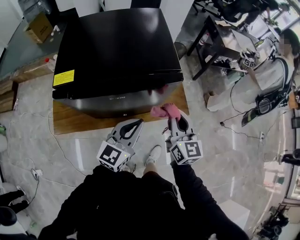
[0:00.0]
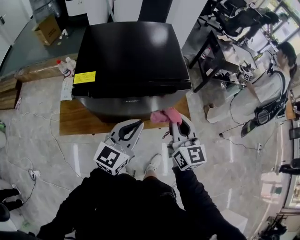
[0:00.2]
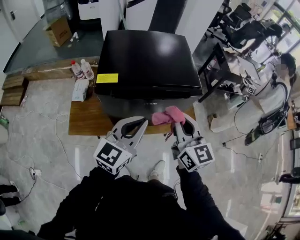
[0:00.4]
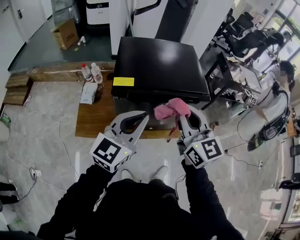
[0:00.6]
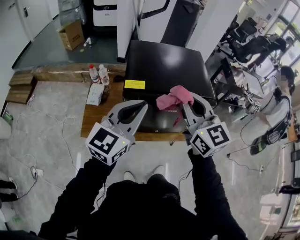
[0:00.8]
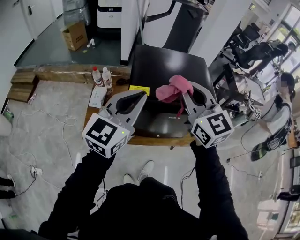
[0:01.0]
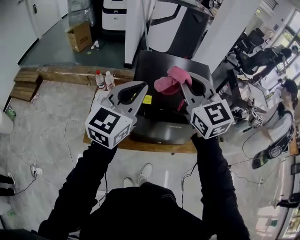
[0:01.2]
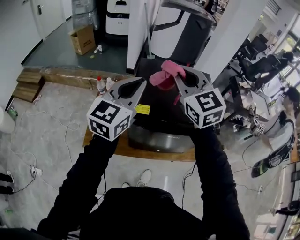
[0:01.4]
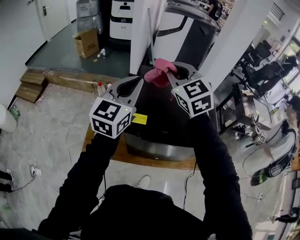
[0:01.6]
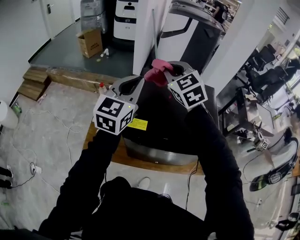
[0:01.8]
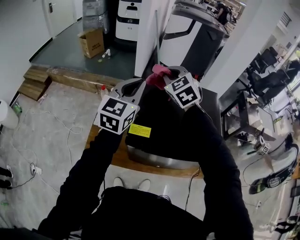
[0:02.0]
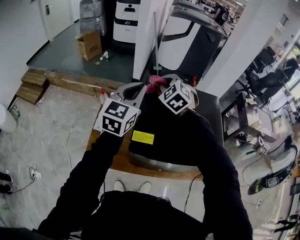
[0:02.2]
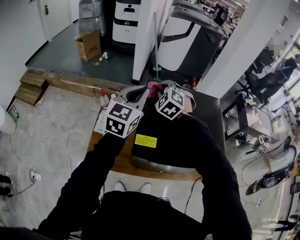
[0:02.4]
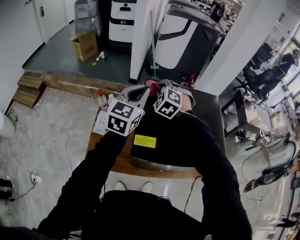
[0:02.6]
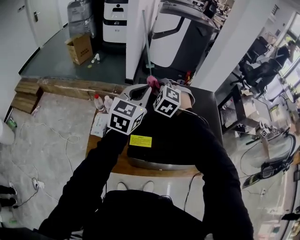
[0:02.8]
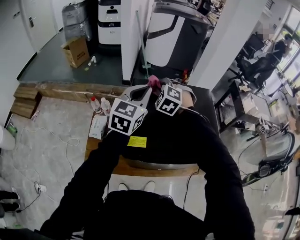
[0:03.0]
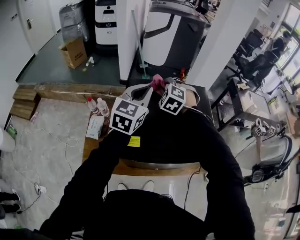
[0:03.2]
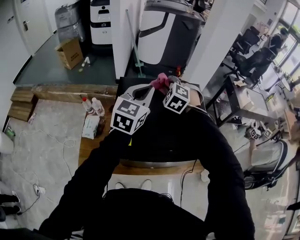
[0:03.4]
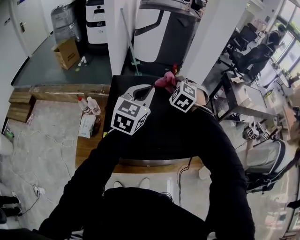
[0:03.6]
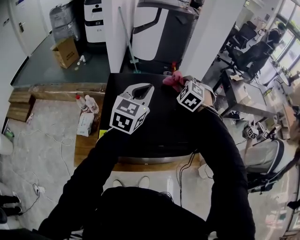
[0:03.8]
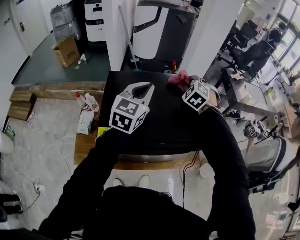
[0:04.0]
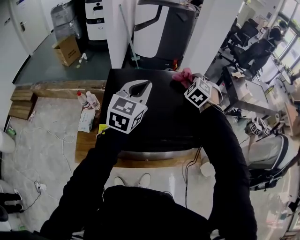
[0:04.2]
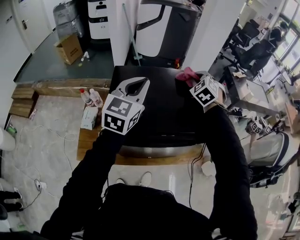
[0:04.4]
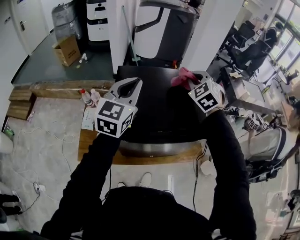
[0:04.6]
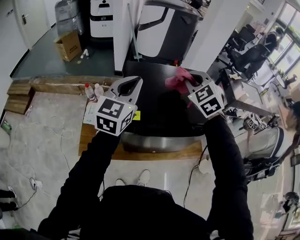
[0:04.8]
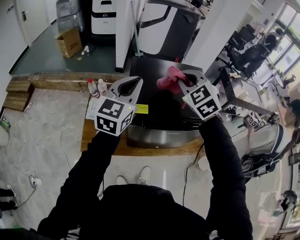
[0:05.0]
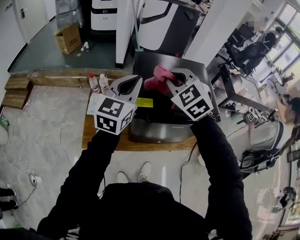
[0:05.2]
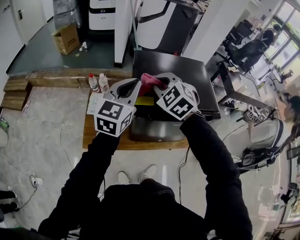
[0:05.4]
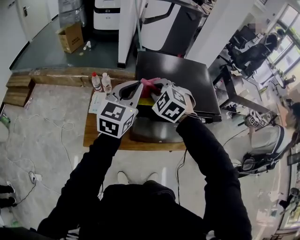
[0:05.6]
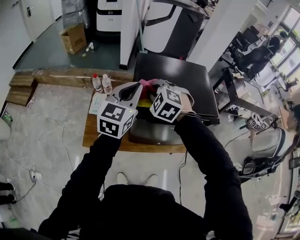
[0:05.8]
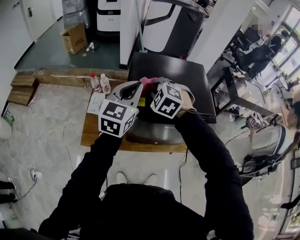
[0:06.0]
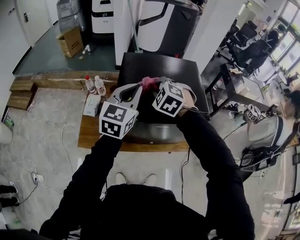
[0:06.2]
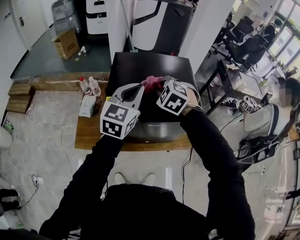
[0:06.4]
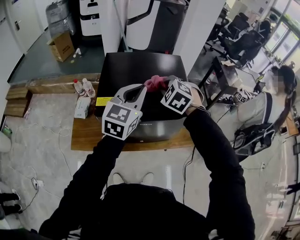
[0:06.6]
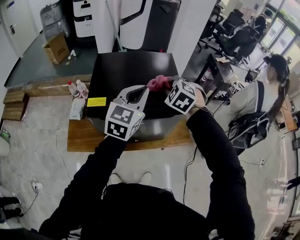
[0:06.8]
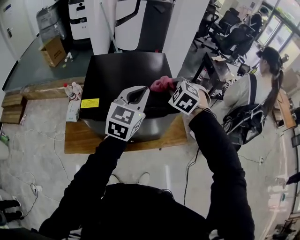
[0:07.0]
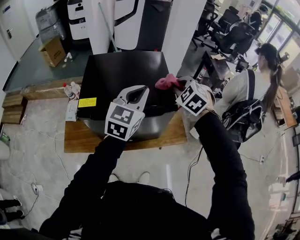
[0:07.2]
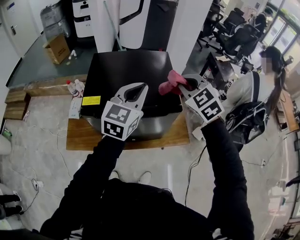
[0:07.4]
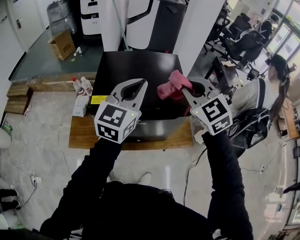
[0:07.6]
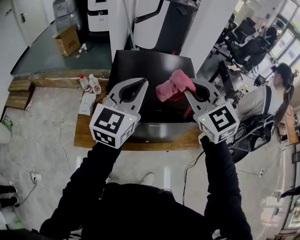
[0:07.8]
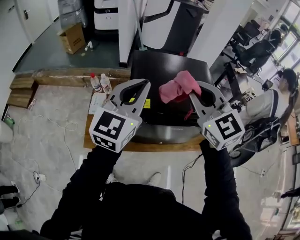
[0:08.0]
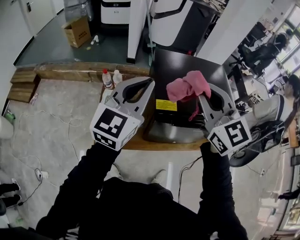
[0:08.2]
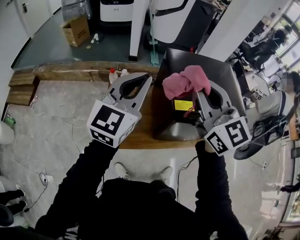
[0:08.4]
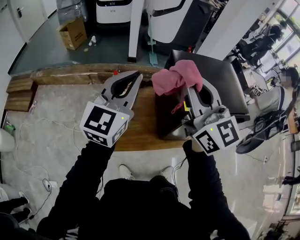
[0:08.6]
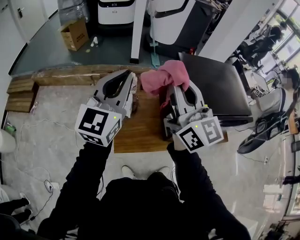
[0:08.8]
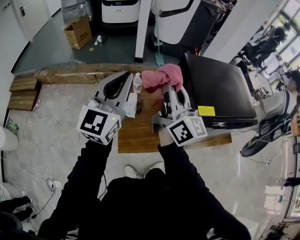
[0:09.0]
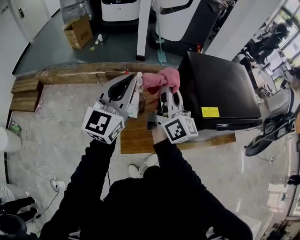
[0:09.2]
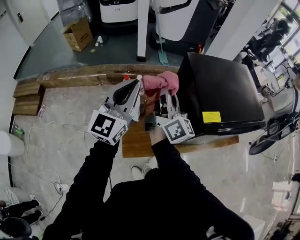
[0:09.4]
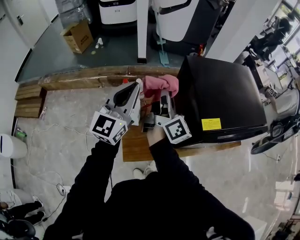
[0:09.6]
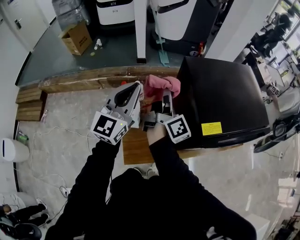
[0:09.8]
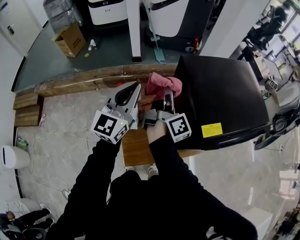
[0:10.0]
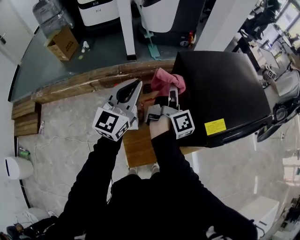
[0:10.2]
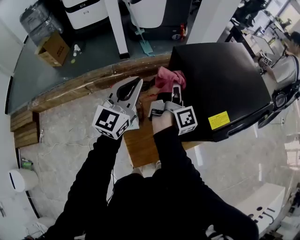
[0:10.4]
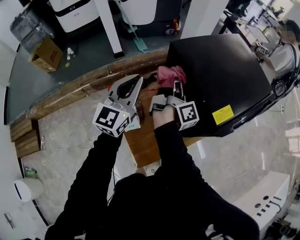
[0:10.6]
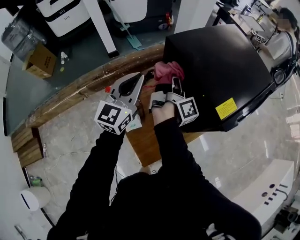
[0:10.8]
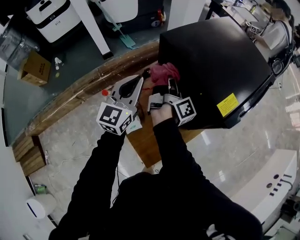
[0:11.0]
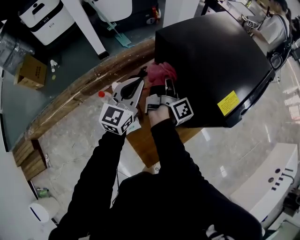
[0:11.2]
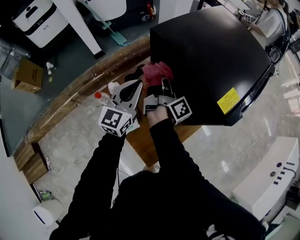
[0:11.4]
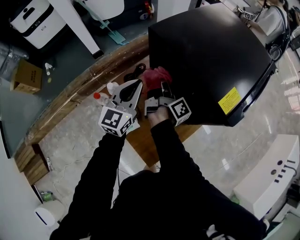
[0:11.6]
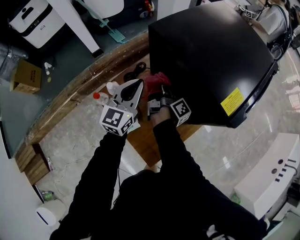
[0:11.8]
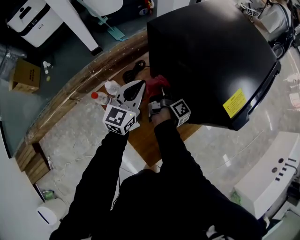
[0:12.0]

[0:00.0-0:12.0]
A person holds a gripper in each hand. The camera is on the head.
0:00.0 to 0:01.6: The left gripper shifts by roughly 40 cm, and changes its angle by roughly 30 degrees. Meanwhile the right gripper shifts by approximately 50 cm, and turns by approximately 50 degrees.
0:01.6 to 0:03.0: The right gripper heads downward and forward, covering about 20 cm, and swivels approximately 40 degrees. Meanwhile the left gripper heads forward and downward, covering some 15 cm.
0:03.0 to 0:04.4: The right gripper moves to the right, about 30 cm, and turns by roughly 20 degrees; the left gripper shifts about 10 cm to the right.
0:04.4 to 0:06.0: The left gripper is displaced backward and to the left by approximately 15 cm, while the right gripper travels to the left and backward by approximately 35 cm, and rotates some 30 degrees.
0:06.0 to 0:07.6: The right gripper is displaced to the right and upward by approximately 30 cm, and swivels roughly 30 degrees; the left gripper goes some 20 cm to the right.
0:07.6 to 0:09.0: The two grippers travel together, to the left, roughly 50 cm. The right gripper tilts its fingers approximately 40 degrees upward.
0:09.0 to 0:10.4: The right gripper shifts approximately 20 cm downward, and changes its angle by roughly 60 degrees. The left gripper ends up about 20 cm from where it was, and rotates approximately 20 degrees.
0:10.4 to 0:12.0: The two grippers go approximately 20 cm downward. The left gripper rotates roughly 20 degrees. Meanwhile the right gripper rotates about 20 degrees.

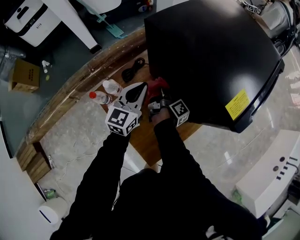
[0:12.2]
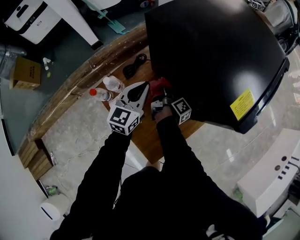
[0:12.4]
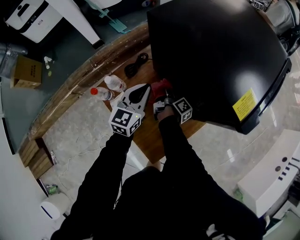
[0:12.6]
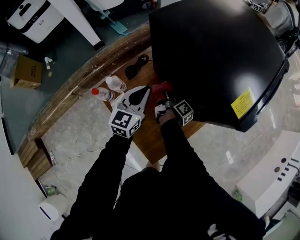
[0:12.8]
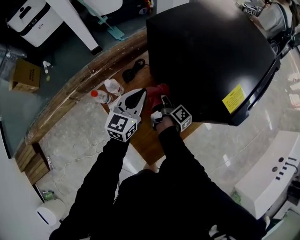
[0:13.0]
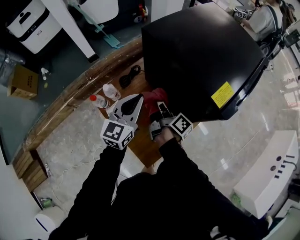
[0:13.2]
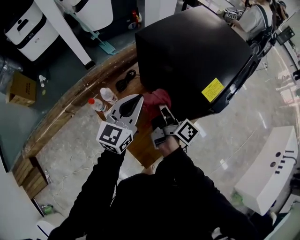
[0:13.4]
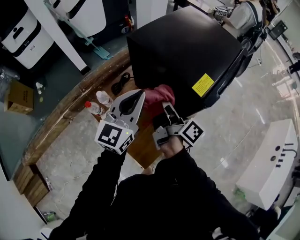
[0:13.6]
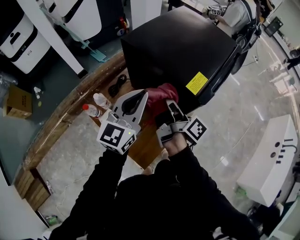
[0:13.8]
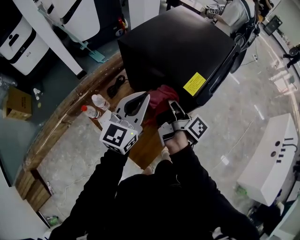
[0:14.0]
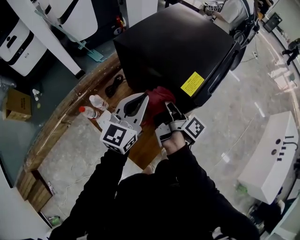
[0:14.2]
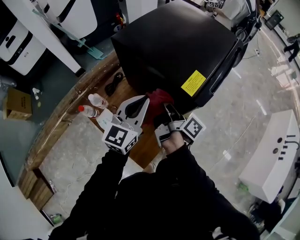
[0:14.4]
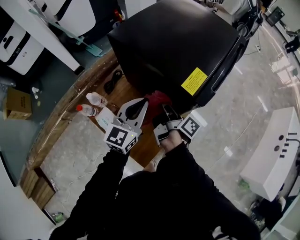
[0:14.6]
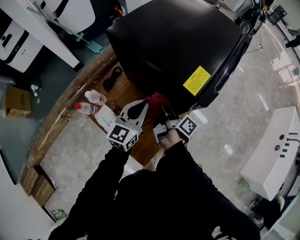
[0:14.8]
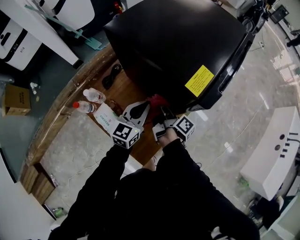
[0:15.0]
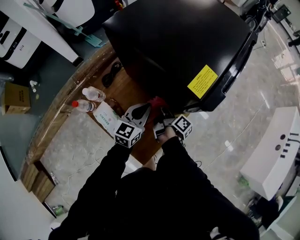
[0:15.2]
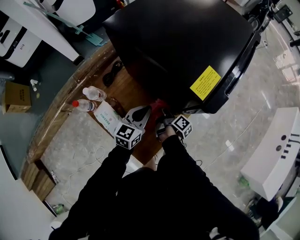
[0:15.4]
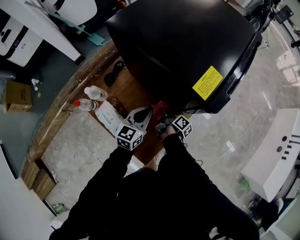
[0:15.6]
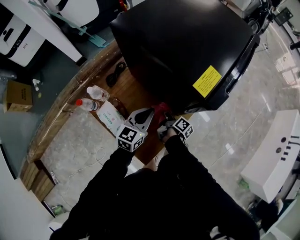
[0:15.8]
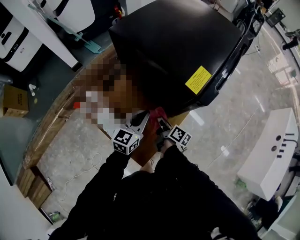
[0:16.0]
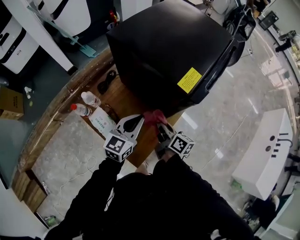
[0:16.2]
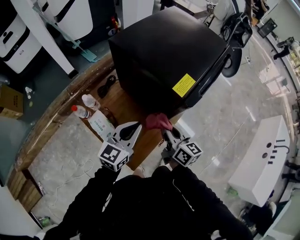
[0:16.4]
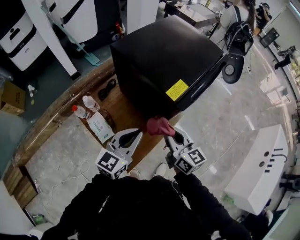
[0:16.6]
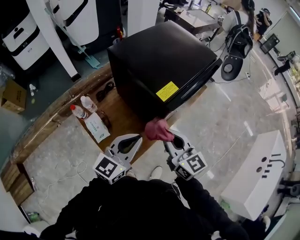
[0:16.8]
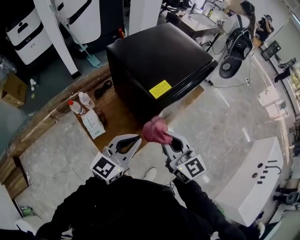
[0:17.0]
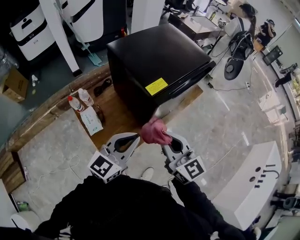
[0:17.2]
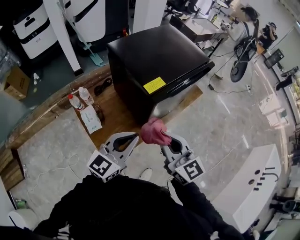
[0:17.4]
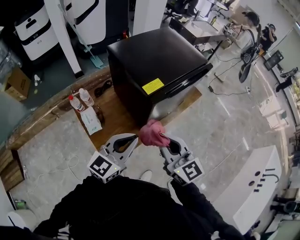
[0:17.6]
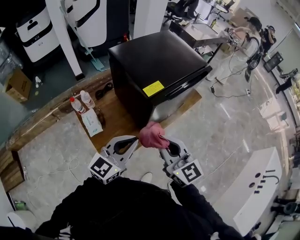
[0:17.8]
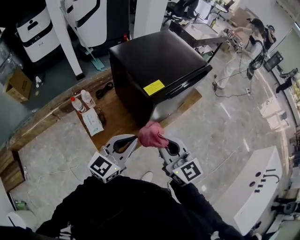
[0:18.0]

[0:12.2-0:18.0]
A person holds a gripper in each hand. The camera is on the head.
0:12.2 to 0:13.6: Both grippers travel together upward and backward, some 25 cm. The right gripper changes its angle by approximately 30 degrees.
0:13.6 to 0:15.0: The grippers both shift downward by some 20 cm. The right gripper swivels roughly 20 degrees.
0:15.0 to 0:16.6: The two grippers go approximately 20 cm upward and backward. The right gripper twists approximately 70 degrees counterclockwise, seen from behind.
0:16.6 to 0:18.0: The left gripper shifts some 15 cm to the right, backward and upward. Meanwhile the right gripper goes roughly 15 cm upward, backward and to the right, and turns by some 20 degrees.

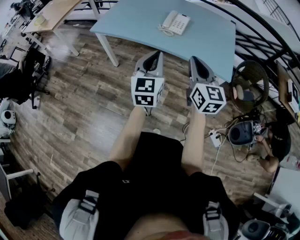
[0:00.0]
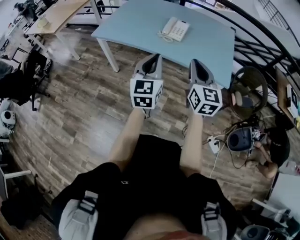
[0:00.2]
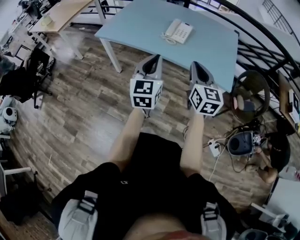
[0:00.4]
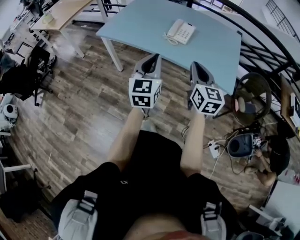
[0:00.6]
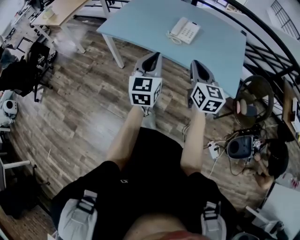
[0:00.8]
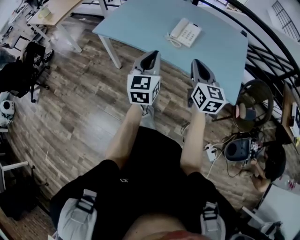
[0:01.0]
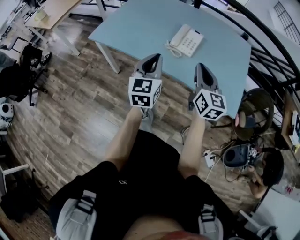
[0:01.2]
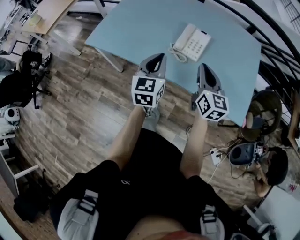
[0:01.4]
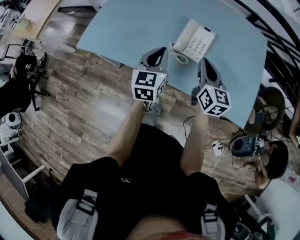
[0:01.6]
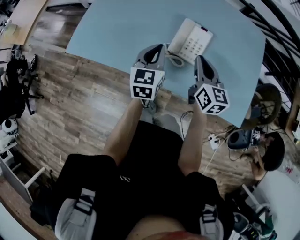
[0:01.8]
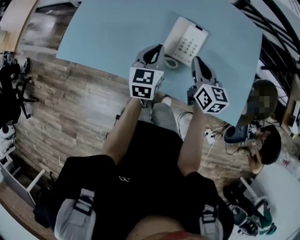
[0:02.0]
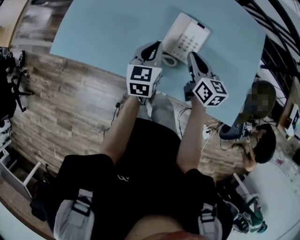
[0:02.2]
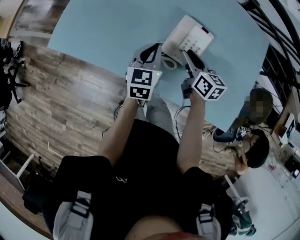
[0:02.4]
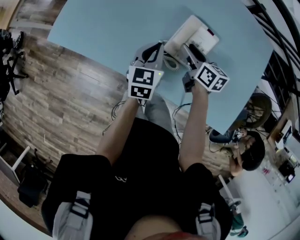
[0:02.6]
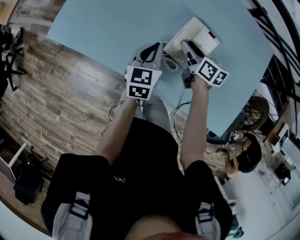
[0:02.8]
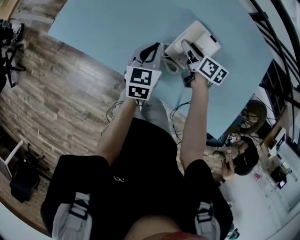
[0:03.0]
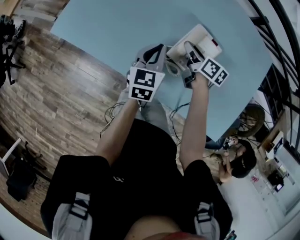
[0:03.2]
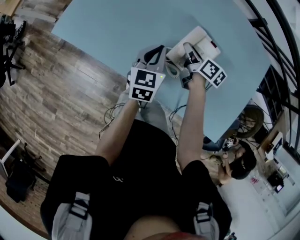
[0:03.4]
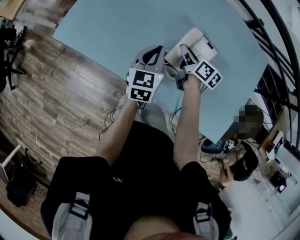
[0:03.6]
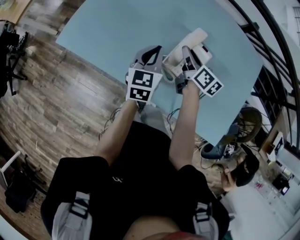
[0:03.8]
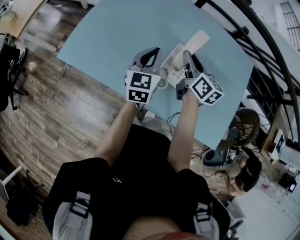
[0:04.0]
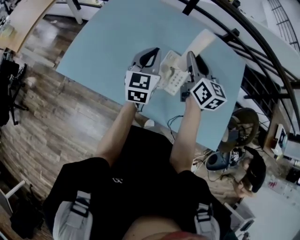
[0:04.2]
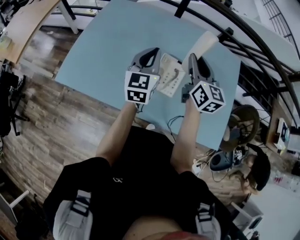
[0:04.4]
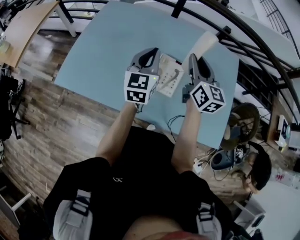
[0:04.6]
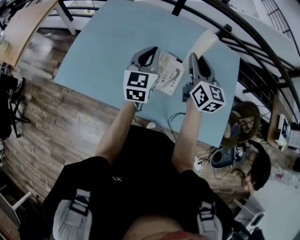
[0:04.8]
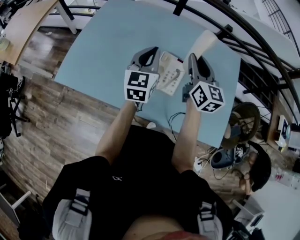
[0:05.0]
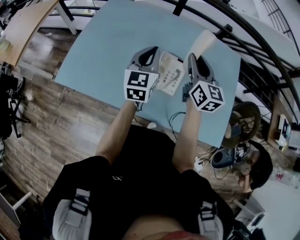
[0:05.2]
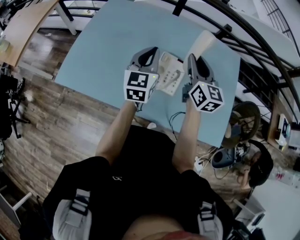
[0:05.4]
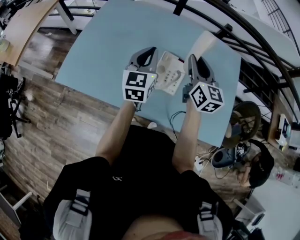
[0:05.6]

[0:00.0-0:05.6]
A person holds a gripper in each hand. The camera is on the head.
0:00.0 to 0:01.4: Both grippers move forward, some 30 cm.
0:01.4 to 0:02.8: Both grippers travel together forward and downward, some 30 cm. The right gripper turns by some 40 degrees, and opens its fingers.
0:02.8 to 0:04.2: The grippers both shift upward by about 25 cm. The left gripper changes its angle by approximately 20 degrees. The right gripper turns by roughly 40 degrees, and closes up.
0:04.2 to 0:05.6: The grippers stay close to where they were, moving slightly.
